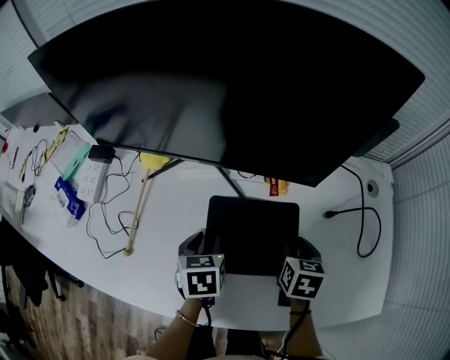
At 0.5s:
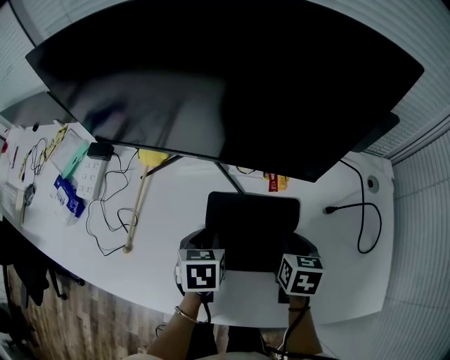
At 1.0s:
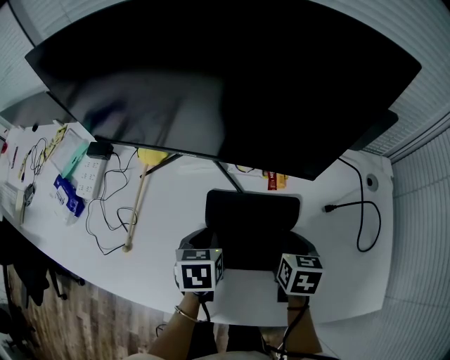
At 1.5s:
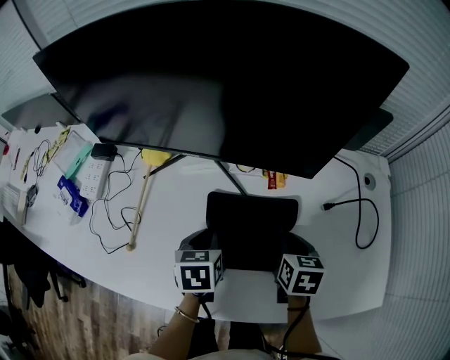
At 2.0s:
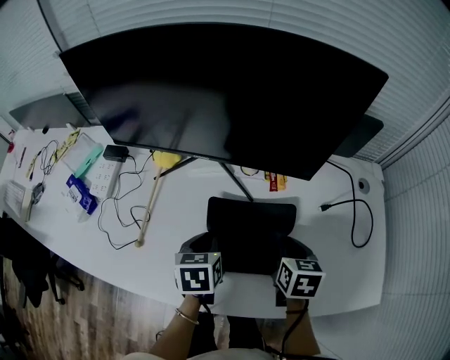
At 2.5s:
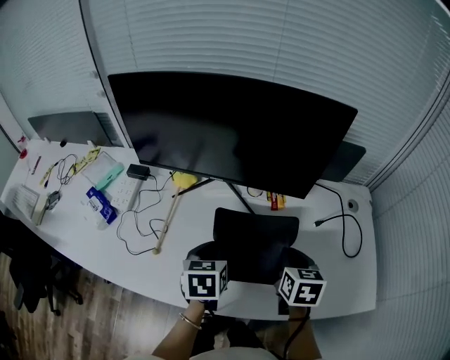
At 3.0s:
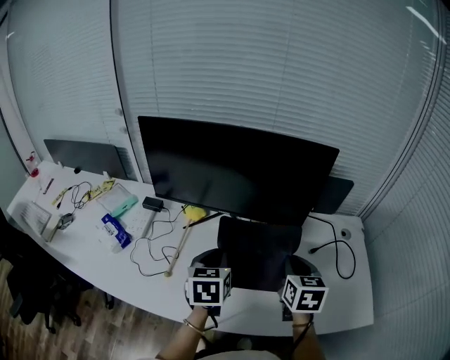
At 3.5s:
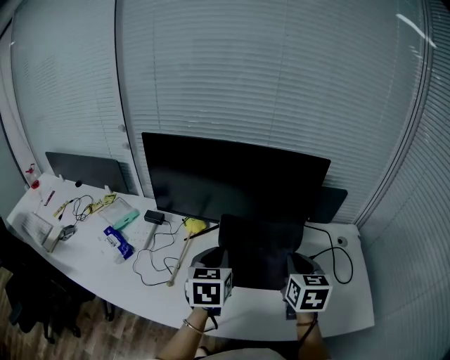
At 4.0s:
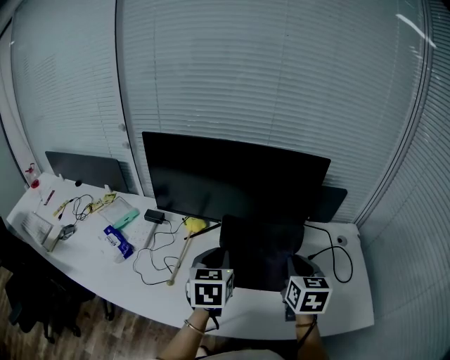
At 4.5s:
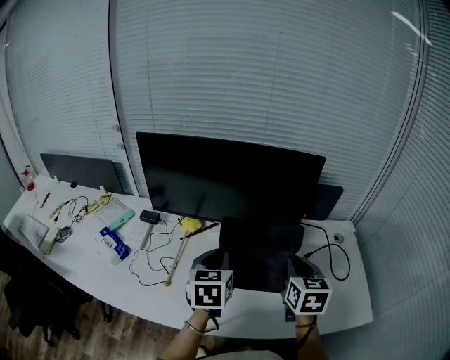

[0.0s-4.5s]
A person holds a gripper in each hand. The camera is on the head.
0.0s to 2.0s: The right gripper shifts by about 5 cm, and closes its fingers, while the left gripper closes.
2.0s to 4.5s: The two grippers go roughly 20 cm upward. The left gripper changes its angle by about 30 degrees; the right gripper turns by approximately 20 degrees.

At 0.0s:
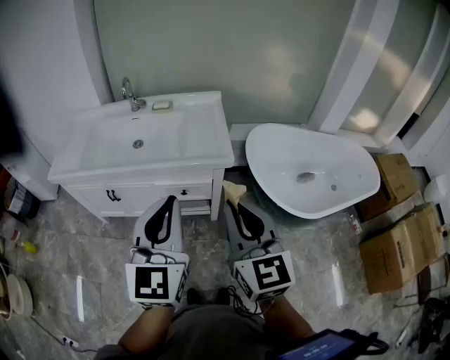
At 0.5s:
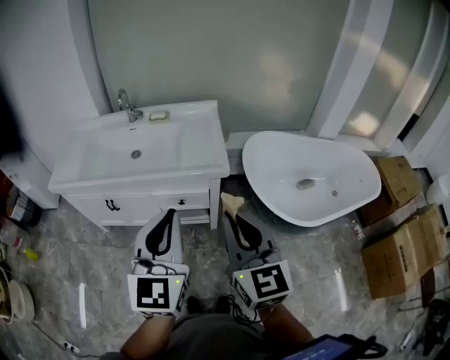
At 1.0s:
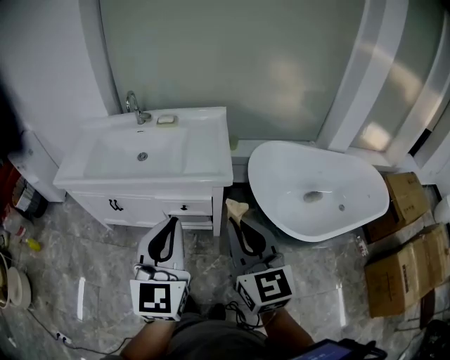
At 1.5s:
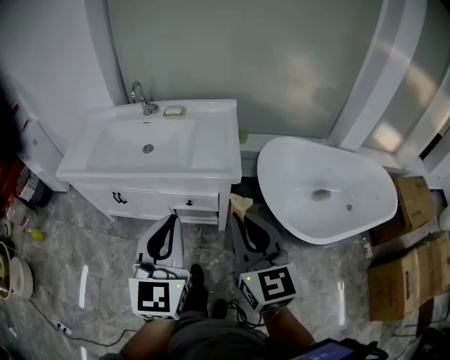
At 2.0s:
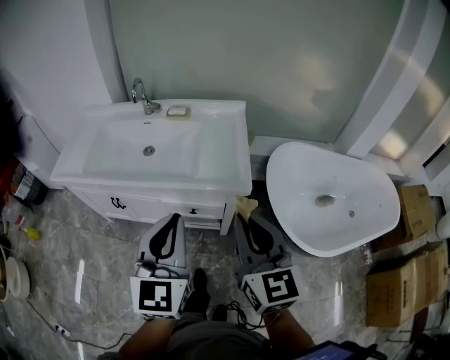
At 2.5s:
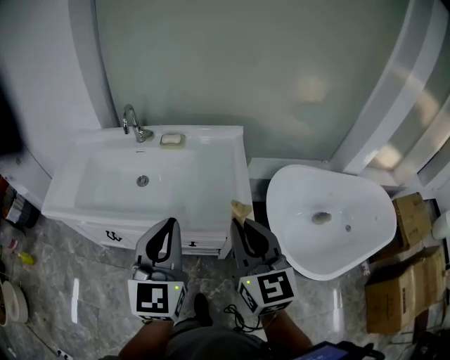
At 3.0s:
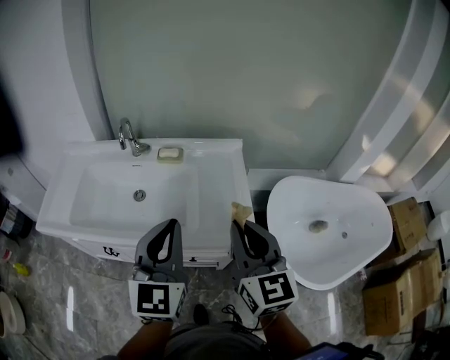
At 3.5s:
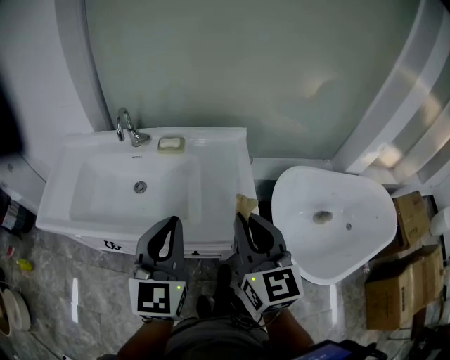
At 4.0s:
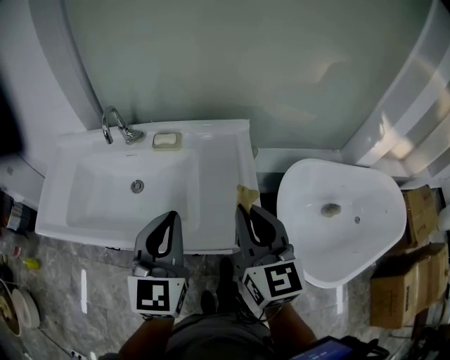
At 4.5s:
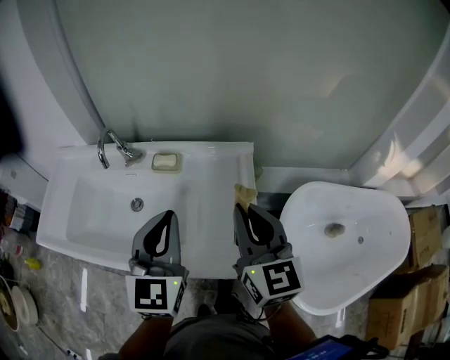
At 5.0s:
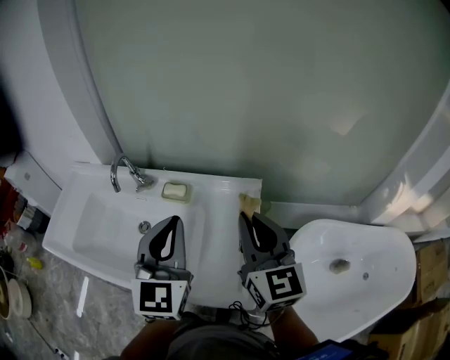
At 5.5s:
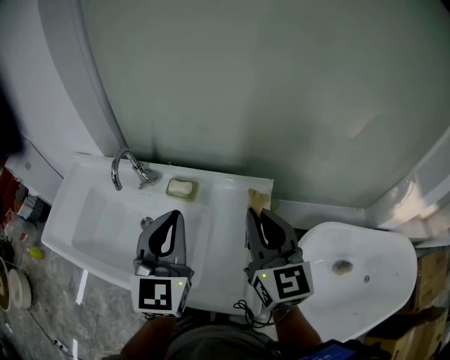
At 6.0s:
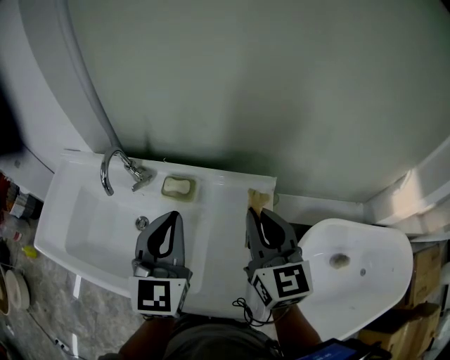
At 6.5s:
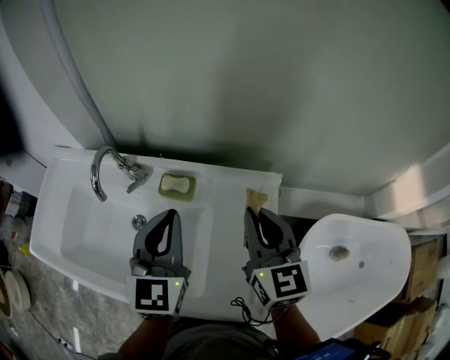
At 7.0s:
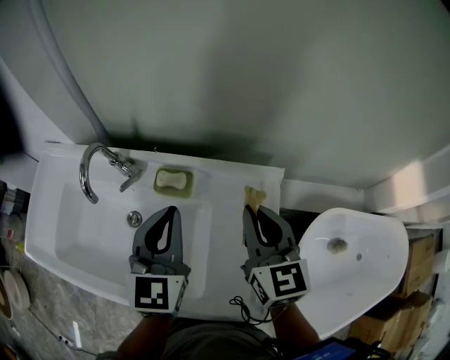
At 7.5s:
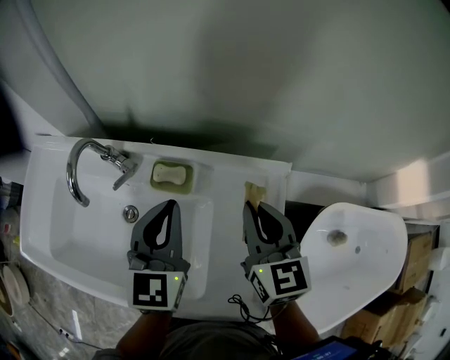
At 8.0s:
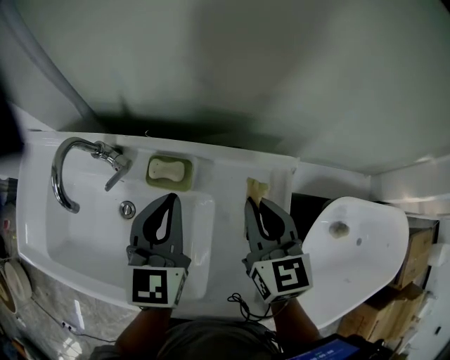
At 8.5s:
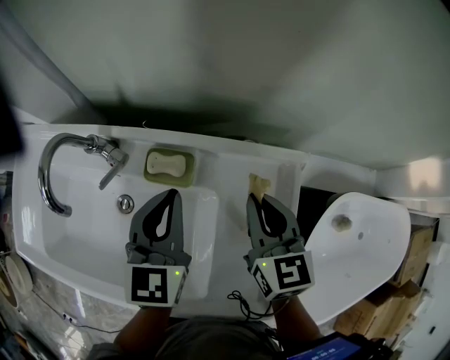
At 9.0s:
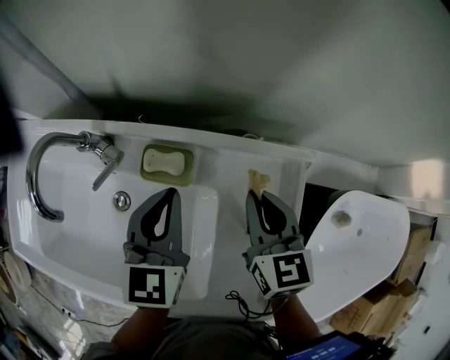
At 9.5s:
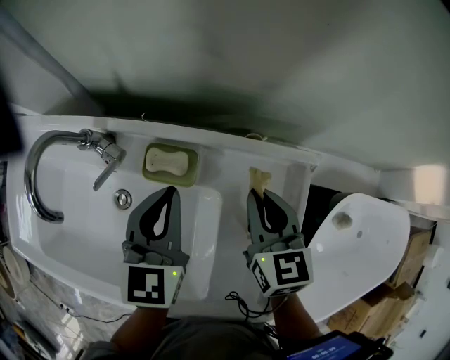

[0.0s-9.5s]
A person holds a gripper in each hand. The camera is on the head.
0.0s to 2.0s: The right gripper is displaced forward by approximately 15 cm. The left gripper goes some 15 cm forward and downward.
2.0s to 4.0s: Both grippers travel together forward, approximately 25 cm.
4.0s to 5.5s: Both grippers travel together forward, about 20 cm.
5.5s to 7.5s: The right gripper shifts roughly 15 cm downward and forward. The left gripper is displaced forward and downward by approximately 20 cm.
7.5s to 9.5s: Both grippers move downward, roughly 10 cm.

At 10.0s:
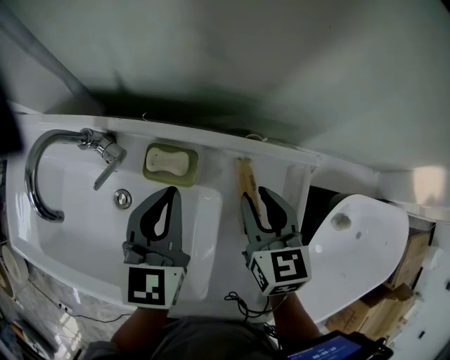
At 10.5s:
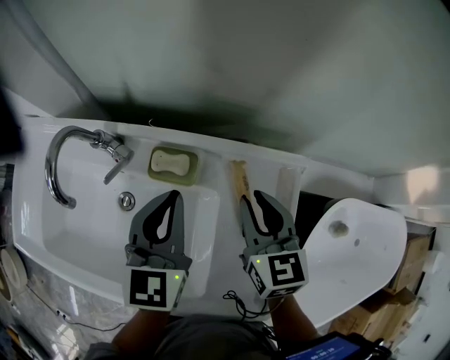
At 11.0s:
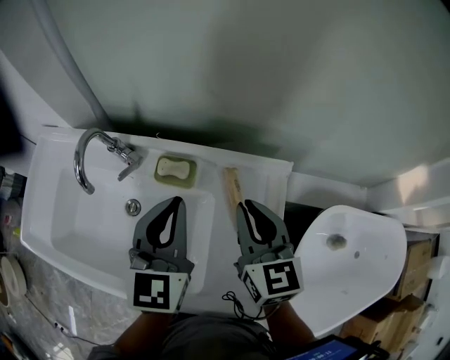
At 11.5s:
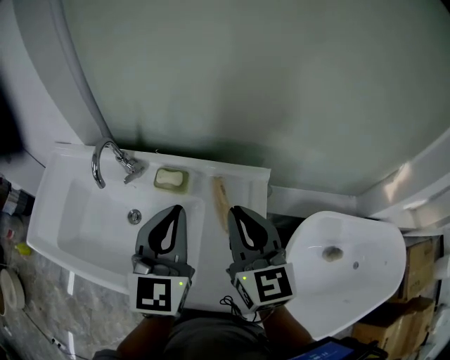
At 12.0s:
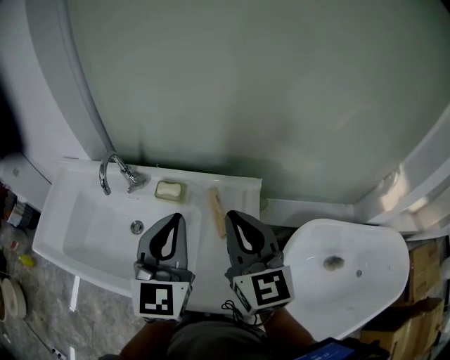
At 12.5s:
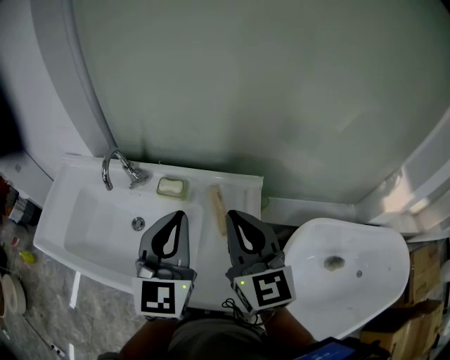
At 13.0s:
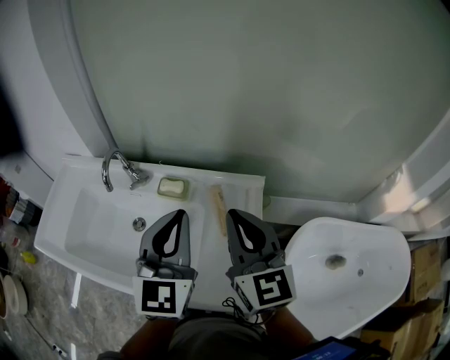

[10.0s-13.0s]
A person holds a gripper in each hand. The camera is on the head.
10.0s to 11.5s: The grippers both shift upward and backward by roughly 25 cm. The right gripper rotates some 30 degrees.
11.5s to 13.0s: The left gripper moves about 5 cm, while the right gripper moves approximately 5 cm.

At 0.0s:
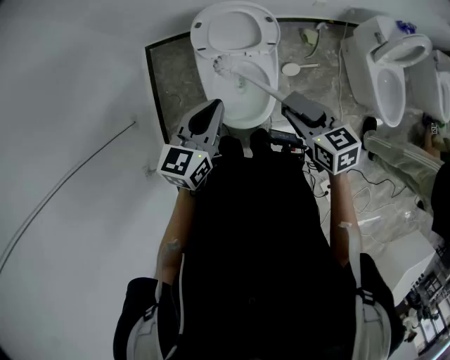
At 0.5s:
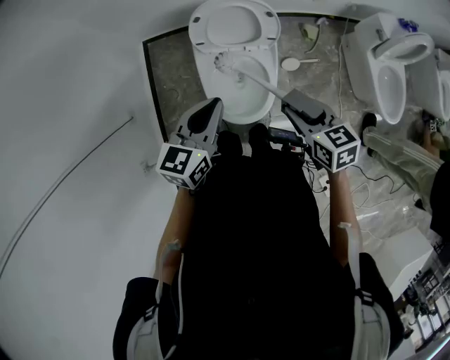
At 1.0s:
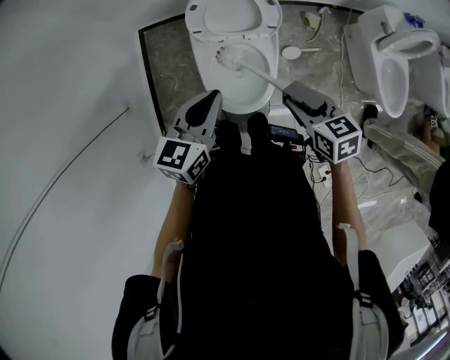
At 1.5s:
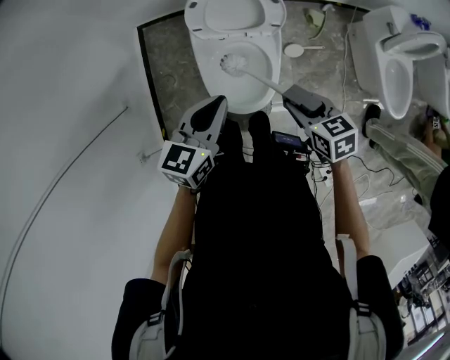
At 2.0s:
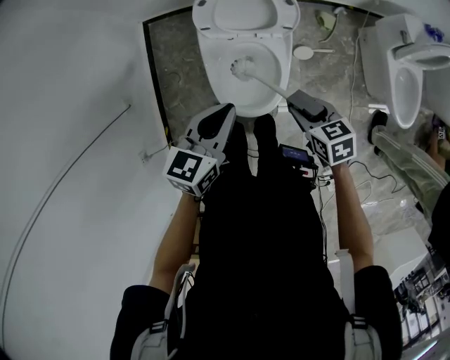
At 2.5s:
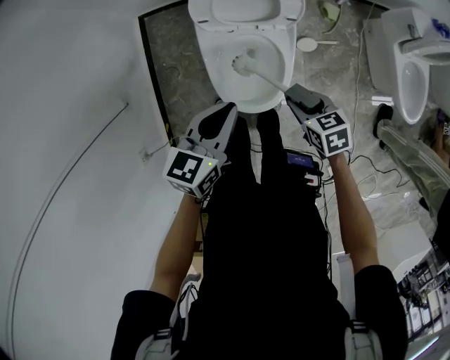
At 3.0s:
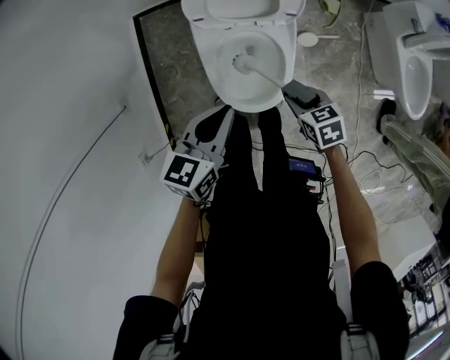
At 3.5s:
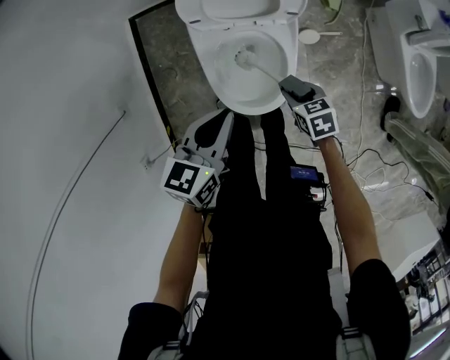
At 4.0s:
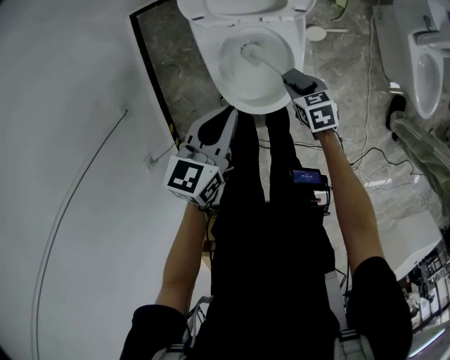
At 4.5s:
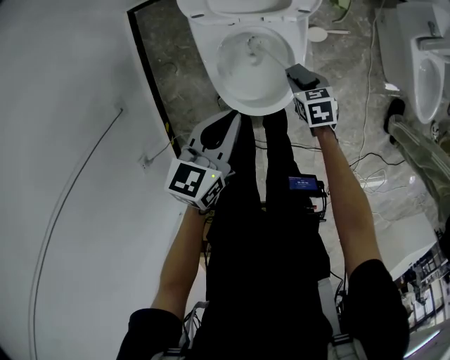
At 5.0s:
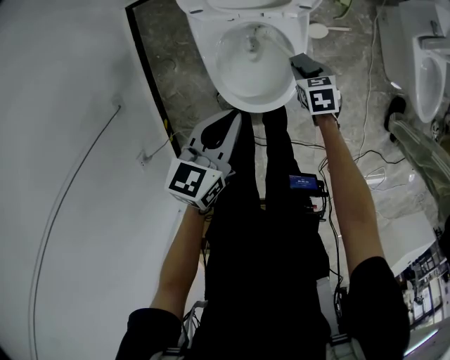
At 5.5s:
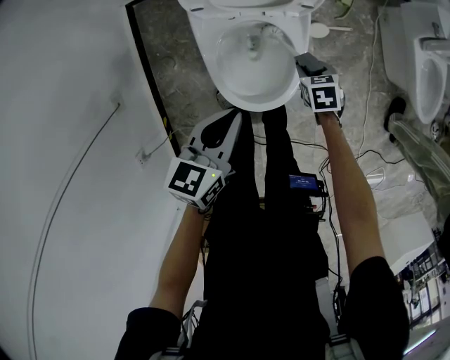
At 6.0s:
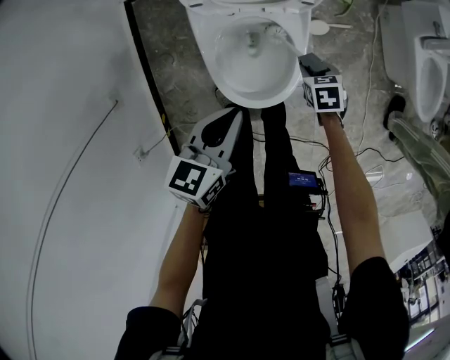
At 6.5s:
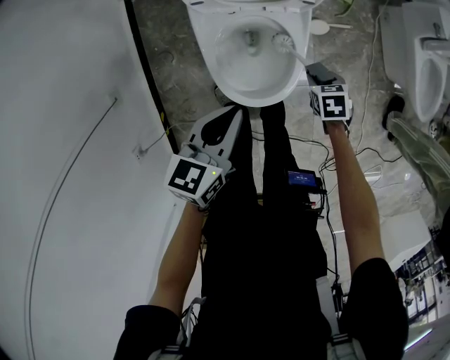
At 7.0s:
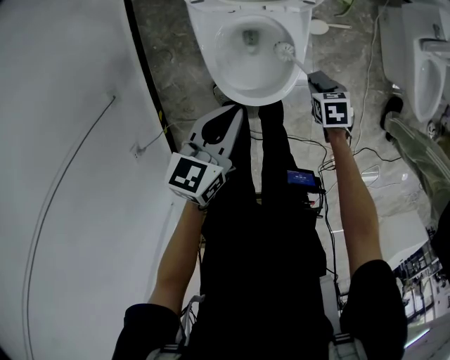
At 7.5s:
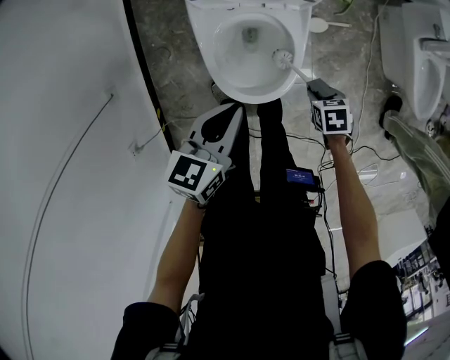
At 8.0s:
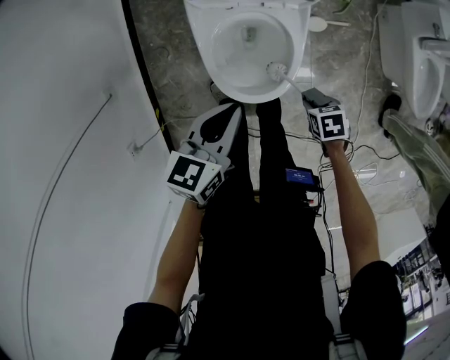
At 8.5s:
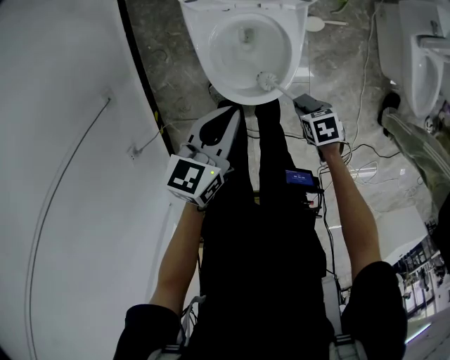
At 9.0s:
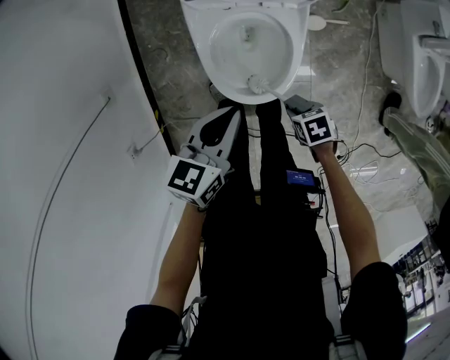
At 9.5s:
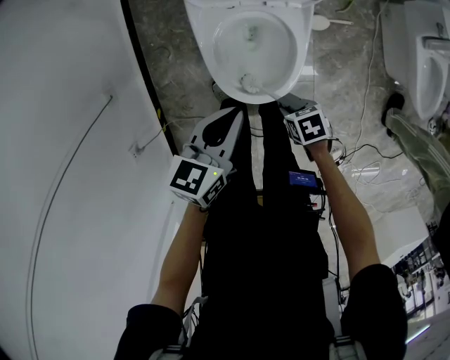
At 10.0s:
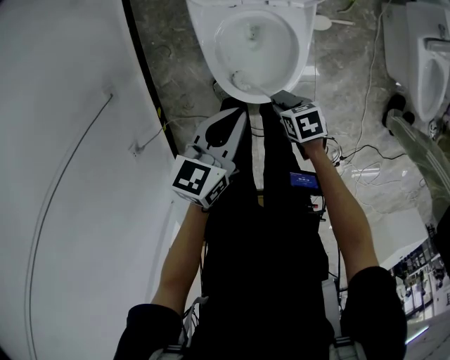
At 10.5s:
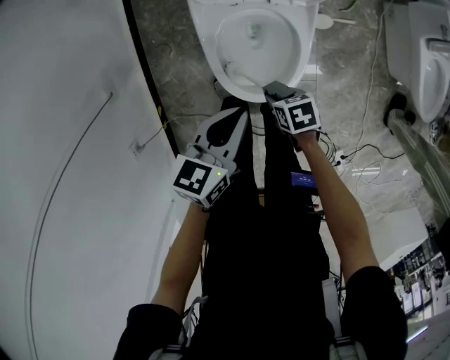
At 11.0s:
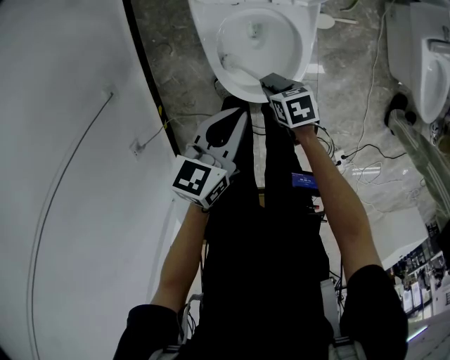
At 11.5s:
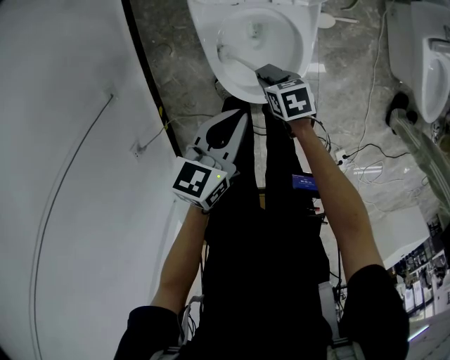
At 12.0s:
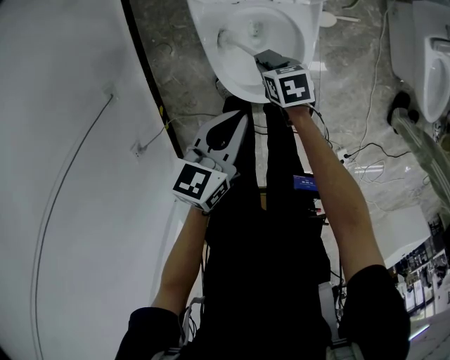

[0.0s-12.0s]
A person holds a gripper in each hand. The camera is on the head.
0.0s to 2.0s: The right gripper goes approximately 15 cm downward; the left gripper is displaced downward by some 10 cm.
2.0s to 4.0s: The left gripper moves downward, some 10 cm. Meanwhile the right gripper moves downward, some 20 cm.
4.0s to 6.0s: The right gripper travels to the right by approximately 5 cm.
6.0s to 8.0s: The right gripper ends up roughly 15 cm from where it was.
8.0s to 10.0s: The right gripper moves some 10 cm.
10.0s to 12.0s: The right gripper shifts by roughly 15 cm.
